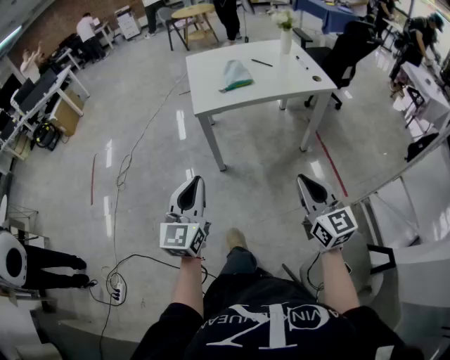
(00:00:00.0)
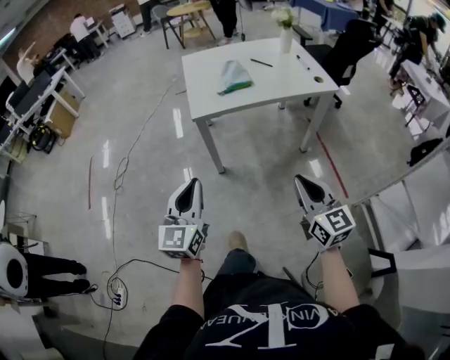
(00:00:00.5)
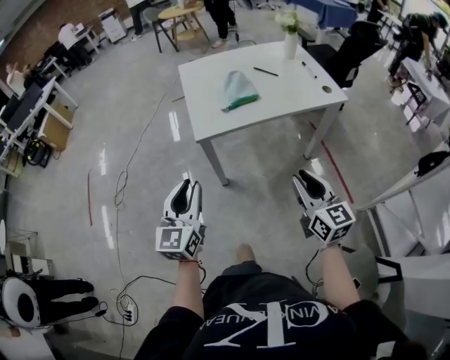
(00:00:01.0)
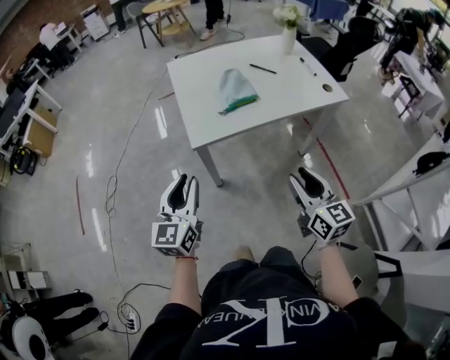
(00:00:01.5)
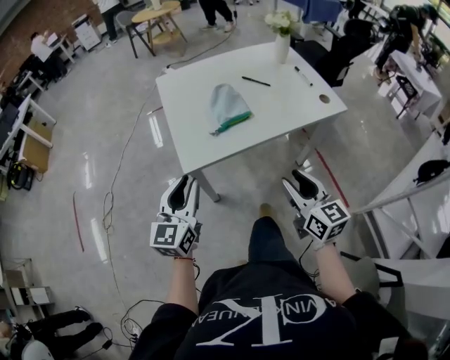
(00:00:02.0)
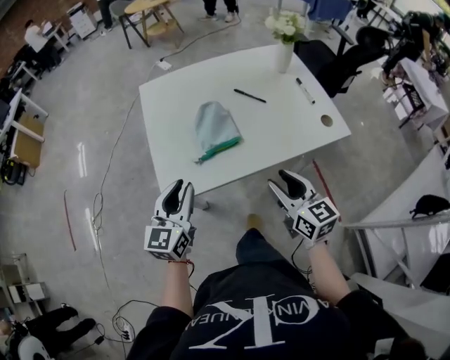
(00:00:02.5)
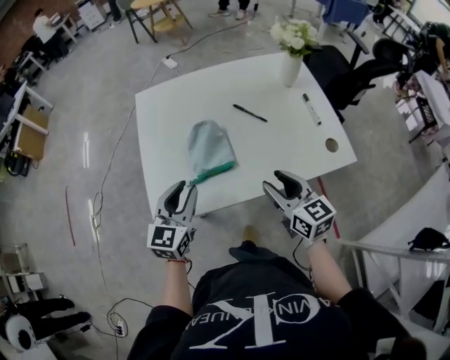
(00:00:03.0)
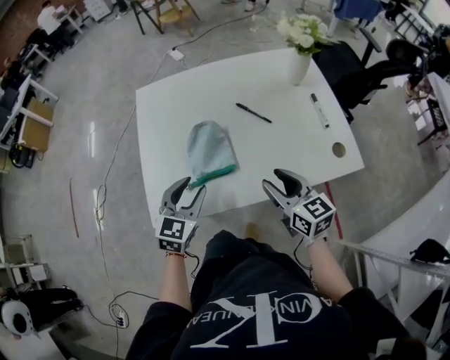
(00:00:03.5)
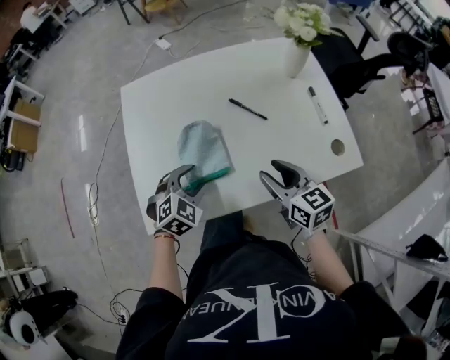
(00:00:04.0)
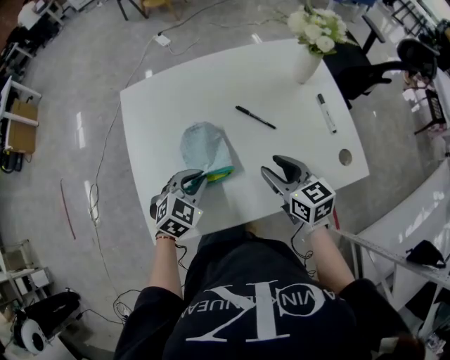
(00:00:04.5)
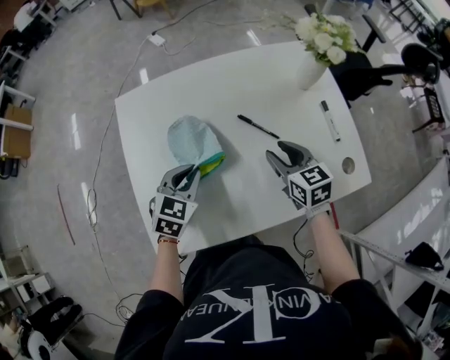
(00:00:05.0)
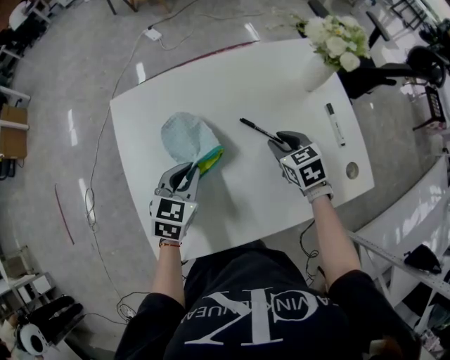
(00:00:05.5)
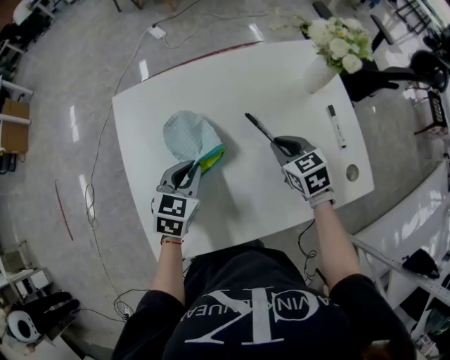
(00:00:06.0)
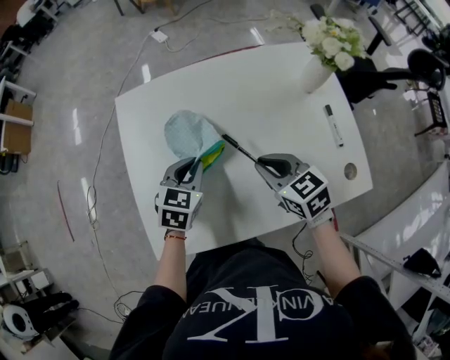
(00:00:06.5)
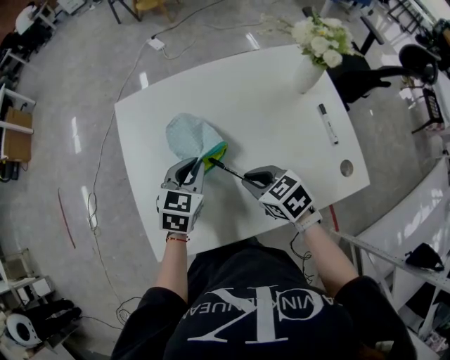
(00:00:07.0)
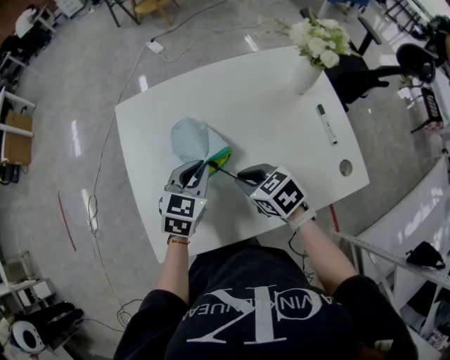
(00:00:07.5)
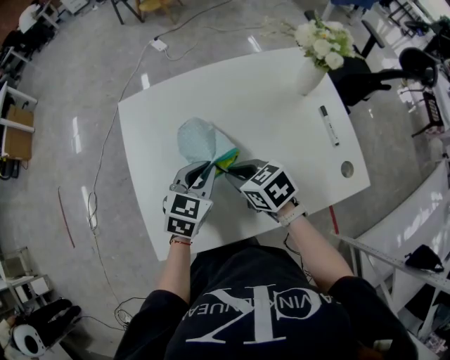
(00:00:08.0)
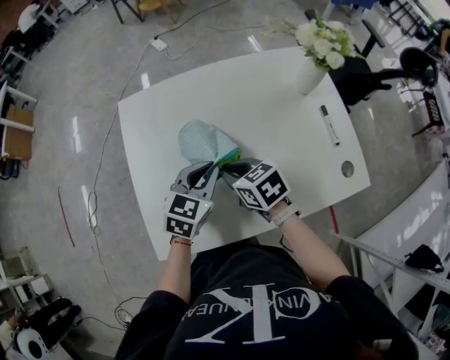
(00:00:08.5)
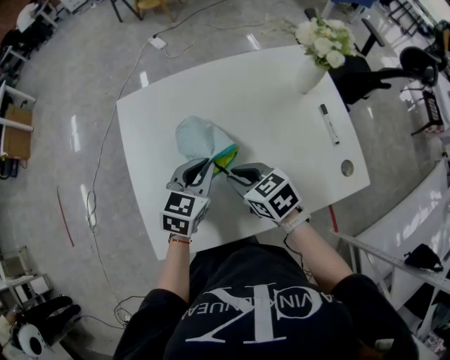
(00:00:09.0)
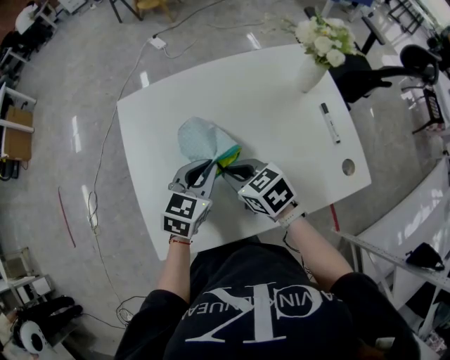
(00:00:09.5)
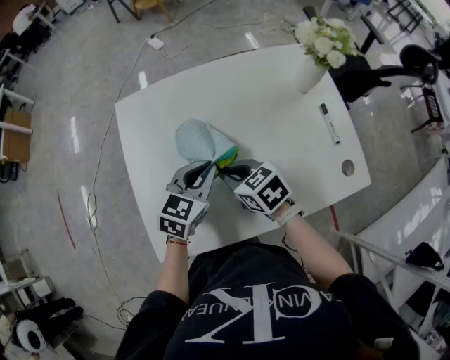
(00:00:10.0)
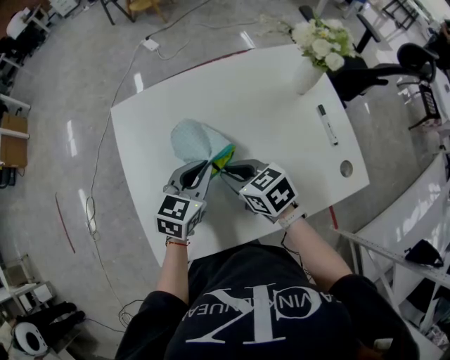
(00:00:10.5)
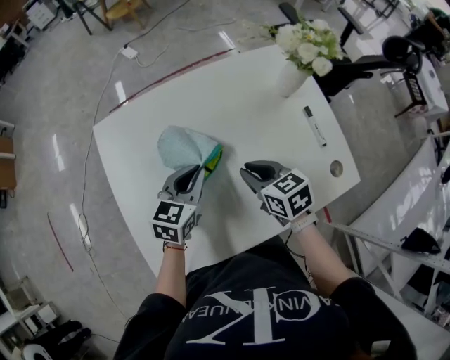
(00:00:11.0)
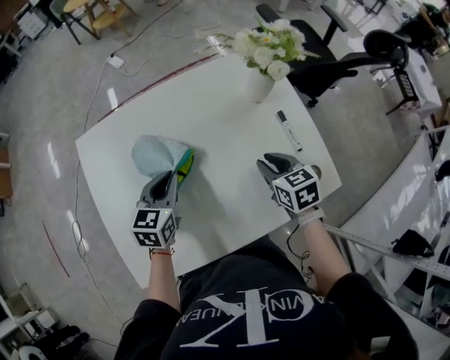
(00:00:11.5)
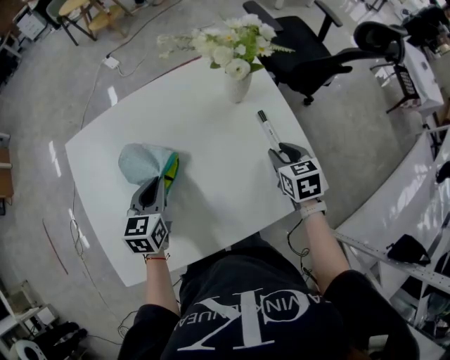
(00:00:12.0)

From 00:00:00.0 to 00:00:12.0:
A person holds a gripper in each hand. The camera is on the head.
From 00:00:00.0 to 00:00:02.0: The two grippers go some 35 cm forward. The right gripper opens up.
From 00:00:02.0 to 00:00:04.0: The left gripper heads forward, to the right and downward, covering some 35 cm, points its fingers approximately 50 degrees further downward, and opens up. The right gripper goes approximately 30 cm forward, and rotates approximately 20 degrees.
From 00:00:04.0 to 00:00:06.0: Both grippers move forward, approximately 15 cm. The left gripper changes its angle by approximately 30 degrees, and closes its fingers, while the right gripper turns by roughly 30 degrees, and closes.
From 00:00:06.0 to 00:00:08.0: The left gripper shifts by some 5 cm; the right gripper moves to the left, some 15 cm, and changes its angle by some 20 degrees.
From 00:00:08.0 to 00:00:10.0: The grippers stay close to where they were, moving slightly.
From 00:00:10.0 to 00:00:12.0: The left gripper heads to the right, covering about 5 cm, while the right gripper shifts about 35 cm to the right, rotates some 40 degrees, and opens its fingers.

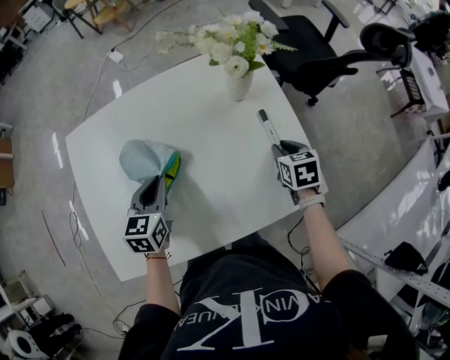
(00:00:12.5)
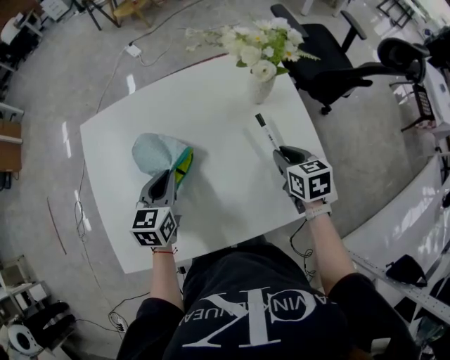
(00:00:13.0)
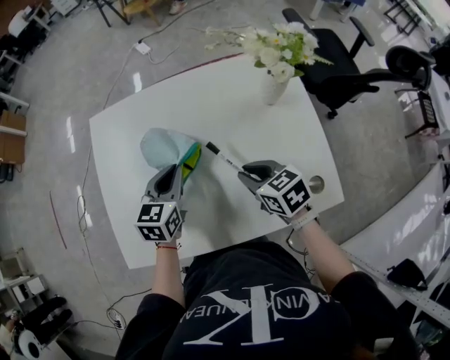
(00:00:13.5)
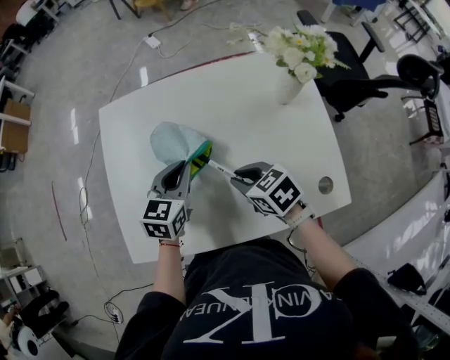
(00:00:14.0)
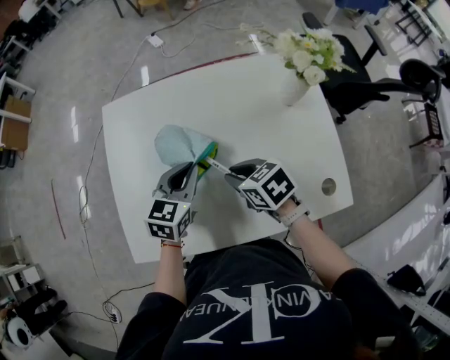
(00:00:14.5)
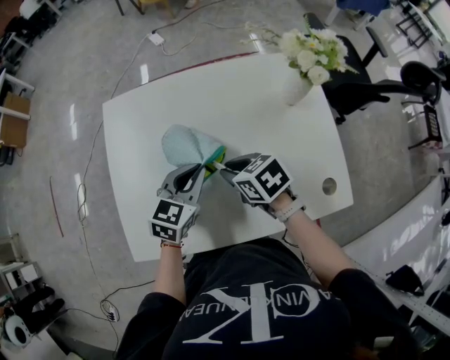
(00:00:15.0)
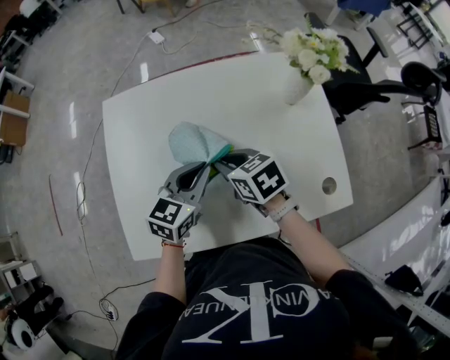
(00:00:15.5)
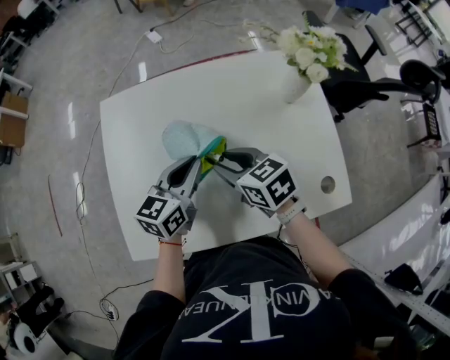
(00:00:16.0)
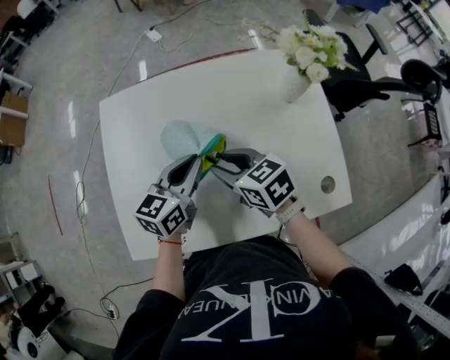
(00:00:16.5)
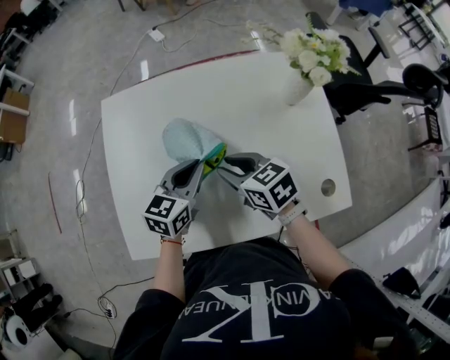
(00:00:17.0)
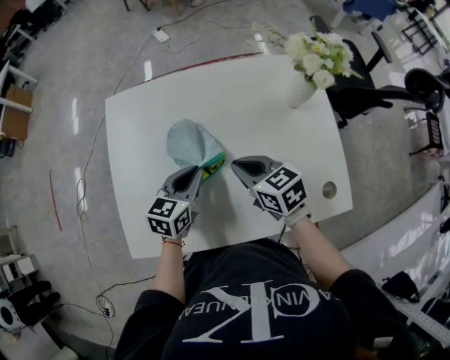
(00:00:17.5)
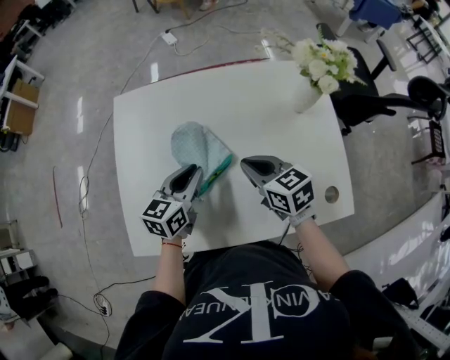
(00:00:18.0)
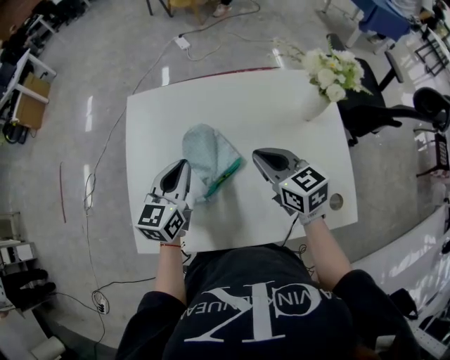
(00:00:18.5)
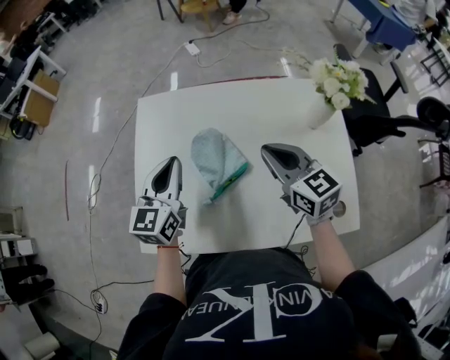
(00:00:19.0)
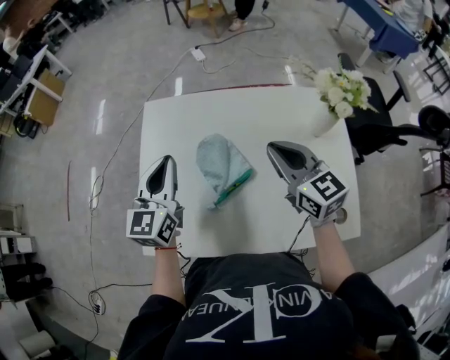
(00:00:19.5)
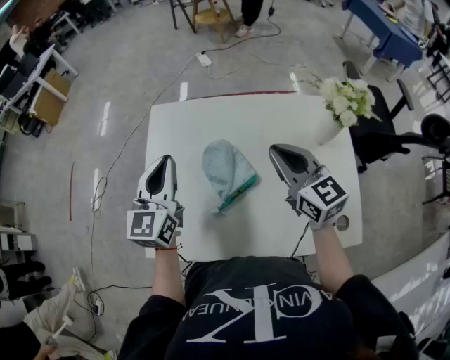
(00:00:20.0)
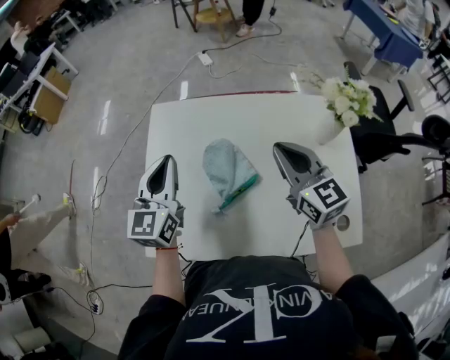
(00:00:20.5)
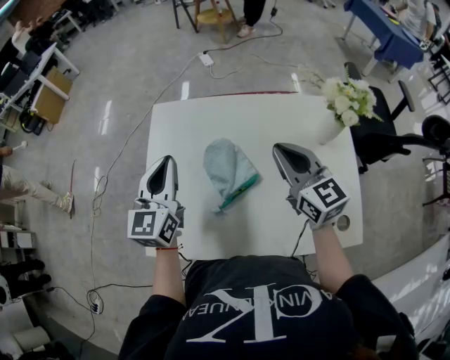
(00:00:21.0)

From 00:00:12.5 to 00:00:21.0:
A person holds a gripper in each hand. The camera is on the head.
From 00:00:12.5 to 00:00:14.5: The right gripper ends up some 30 cm from where it was, and swivels approximately 40 degrees.
From 00:00:14.5 to 00:00:16.5: The grippers make only small movements.
From 00:00:16.5 to 00:00:19.0: The right gripper goes some 10 cm upward and to the right, swivels some 20 degrees, and closes up. The left gripper travels to the left and upward by about 15 cm, and changes its angle by about 30 degrees.
From 00:00:19.0 to 00:00:21.0: The left gripper changes place by about 5 cm.

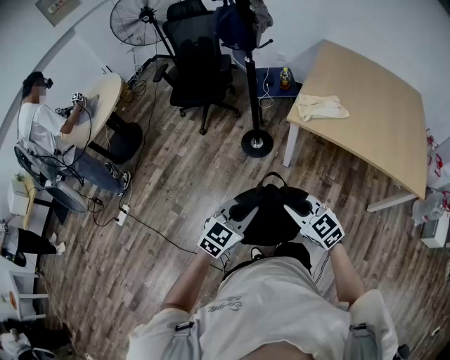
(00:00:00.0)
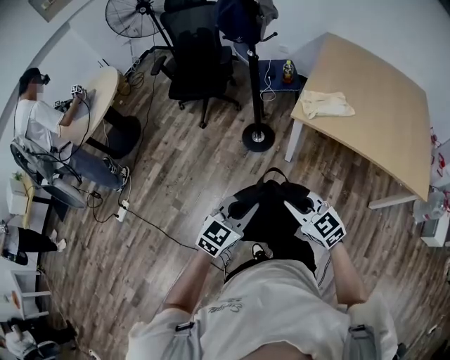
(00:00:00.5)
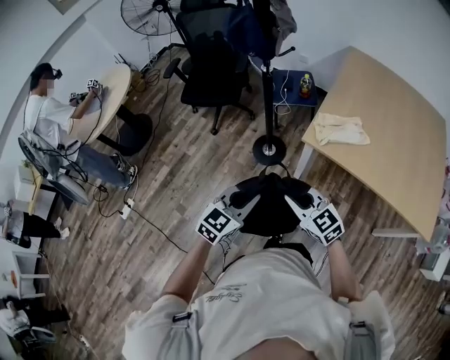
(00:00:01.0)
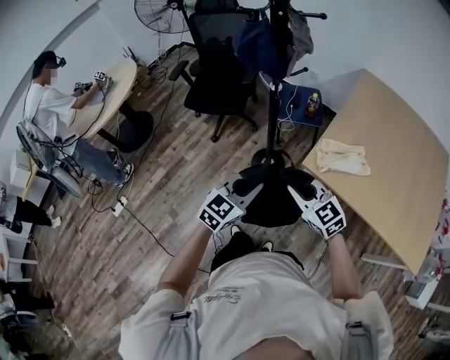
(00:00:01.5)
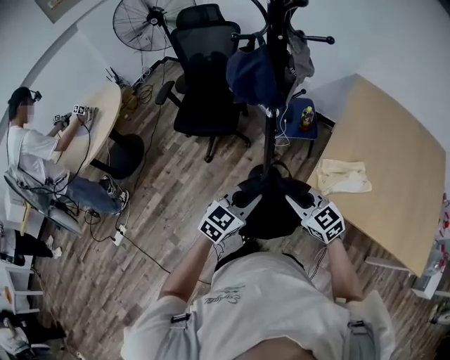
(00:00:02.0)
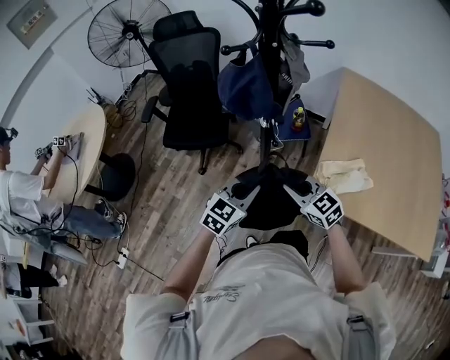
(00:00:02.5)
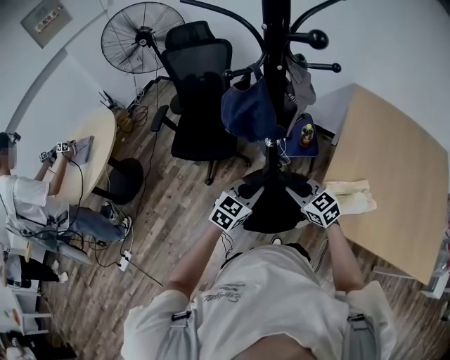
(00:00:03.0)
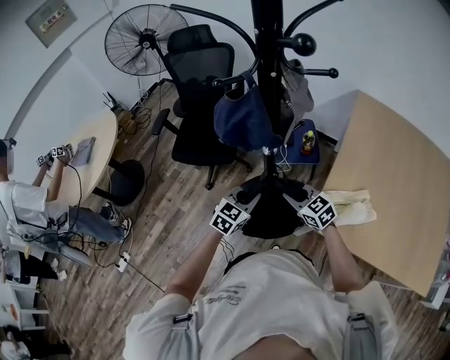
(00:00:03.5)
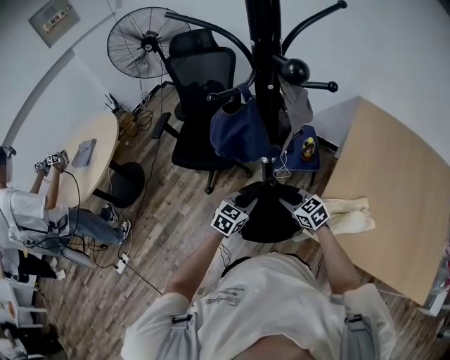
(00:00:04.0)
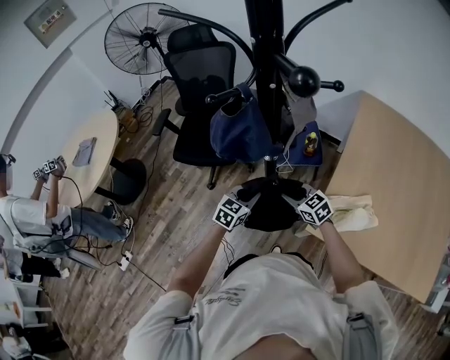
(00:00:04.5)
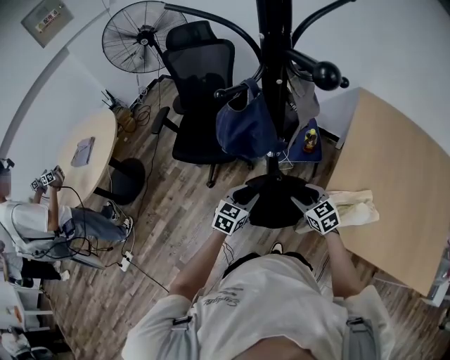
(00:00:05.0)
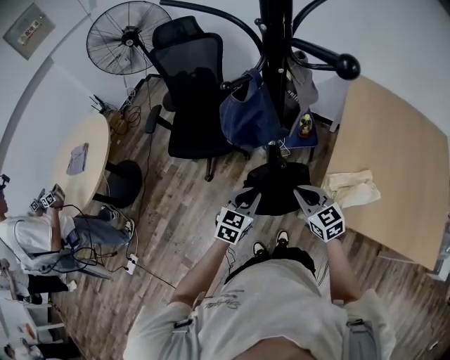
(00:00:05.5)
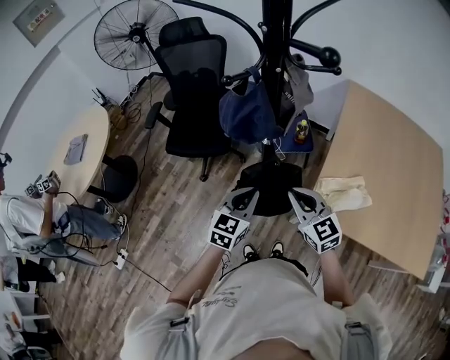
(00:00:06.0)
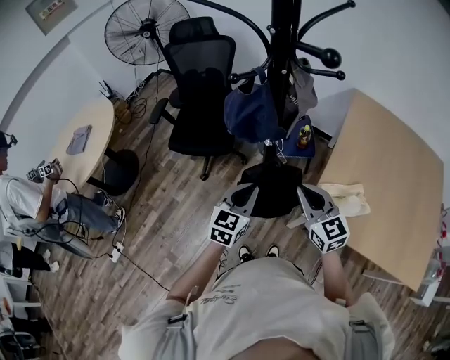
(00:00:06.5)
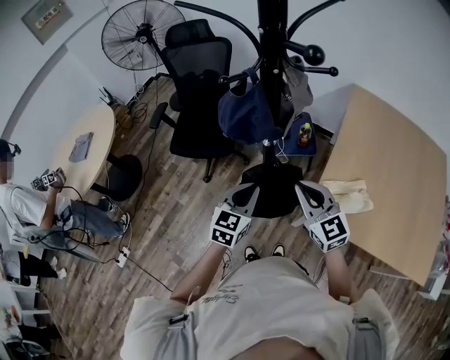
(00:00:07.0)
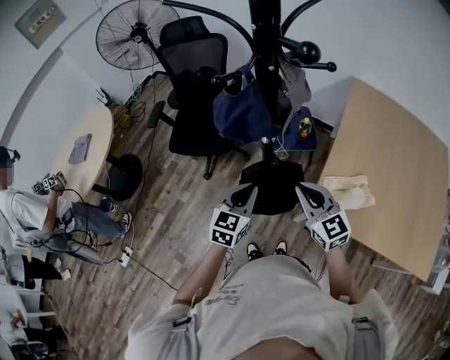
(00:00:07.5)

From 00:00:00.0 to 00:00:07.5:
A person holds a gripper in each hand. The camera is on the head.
From 00:00:00.0 to 00:00:02.0: Both grippers are carried forward, roughly 40 cm.
From 00:00:02.0 to 00:00:04.0: Both grippers move forward and downward, some 25 cm.
From 00:00:04.0 to 00:00:05.5: The left gripper heads upward, covering roughly 5 cm. Meanwhile the right gripper travels upward and backward by roughly 10 cm, and opens and closes again.
From 00:00:05.5 to 00:00:07.5: The grippers both shift upward by about 10 cm.
